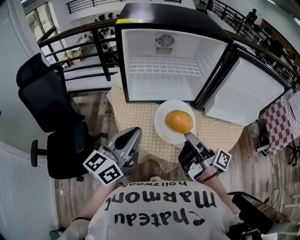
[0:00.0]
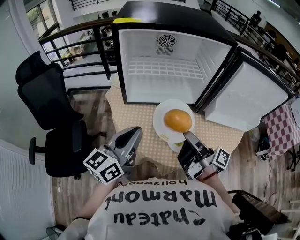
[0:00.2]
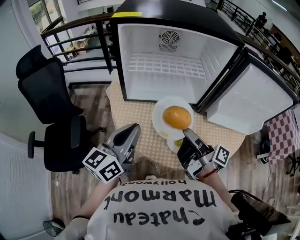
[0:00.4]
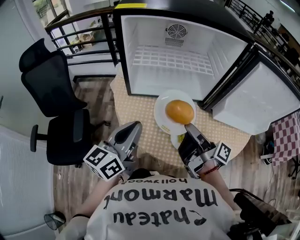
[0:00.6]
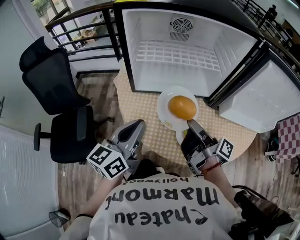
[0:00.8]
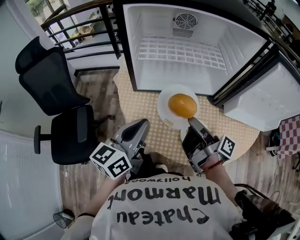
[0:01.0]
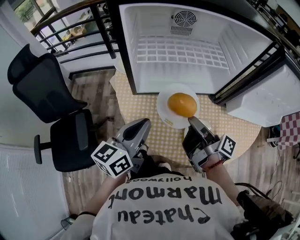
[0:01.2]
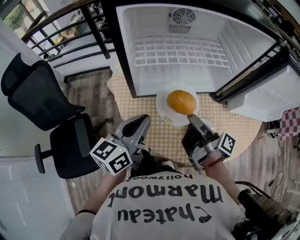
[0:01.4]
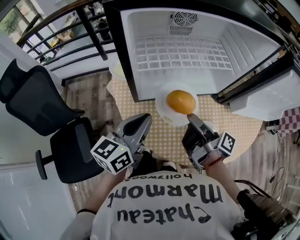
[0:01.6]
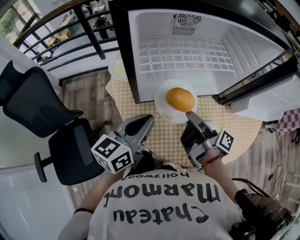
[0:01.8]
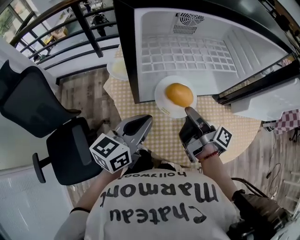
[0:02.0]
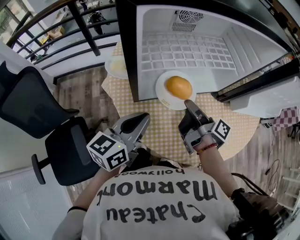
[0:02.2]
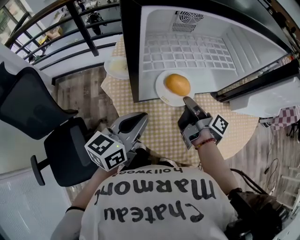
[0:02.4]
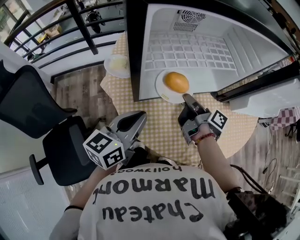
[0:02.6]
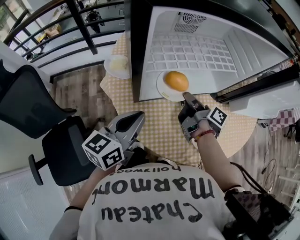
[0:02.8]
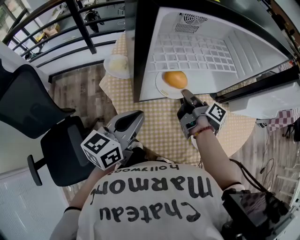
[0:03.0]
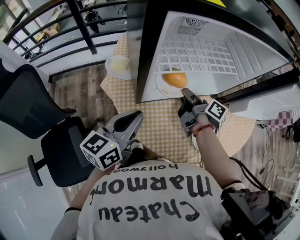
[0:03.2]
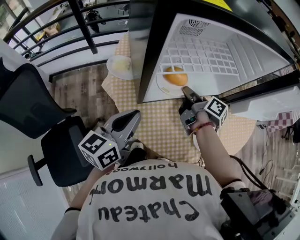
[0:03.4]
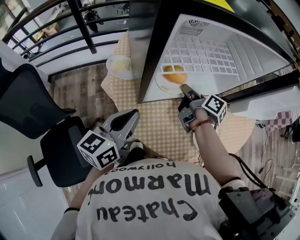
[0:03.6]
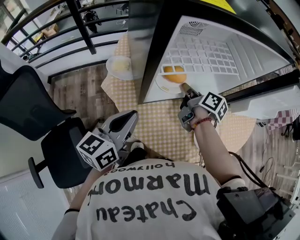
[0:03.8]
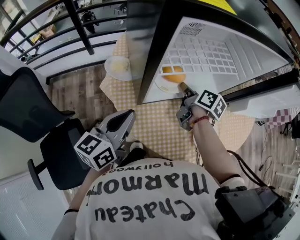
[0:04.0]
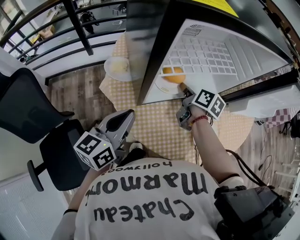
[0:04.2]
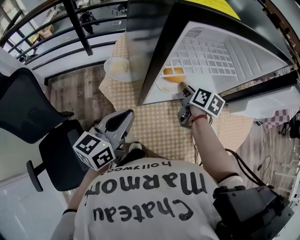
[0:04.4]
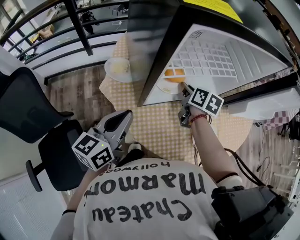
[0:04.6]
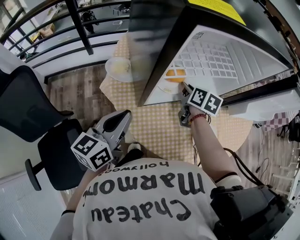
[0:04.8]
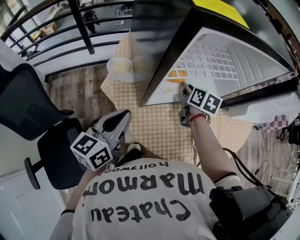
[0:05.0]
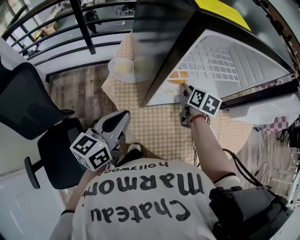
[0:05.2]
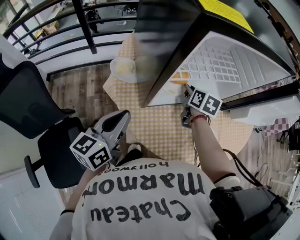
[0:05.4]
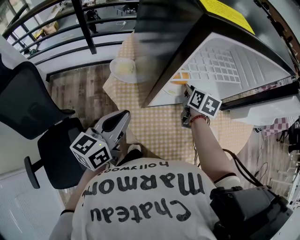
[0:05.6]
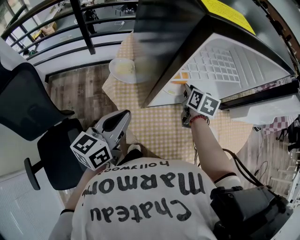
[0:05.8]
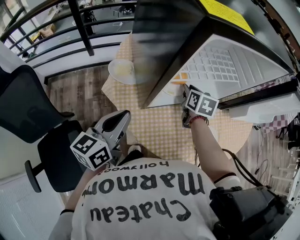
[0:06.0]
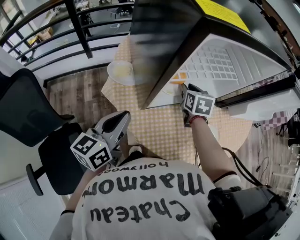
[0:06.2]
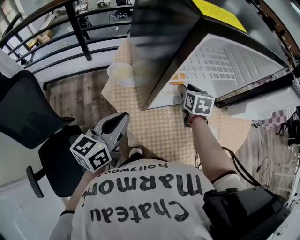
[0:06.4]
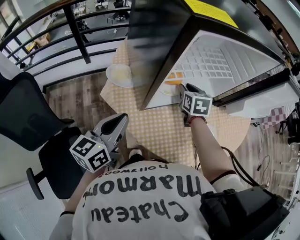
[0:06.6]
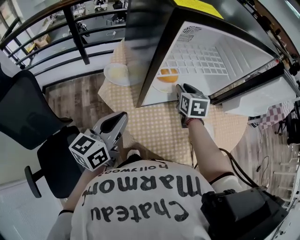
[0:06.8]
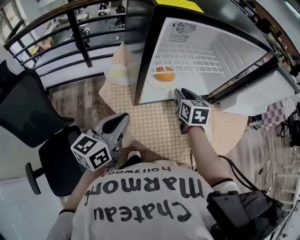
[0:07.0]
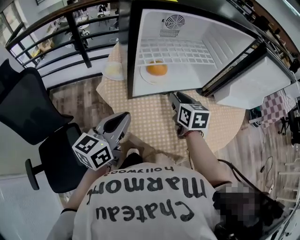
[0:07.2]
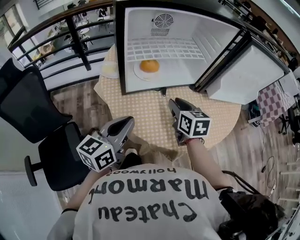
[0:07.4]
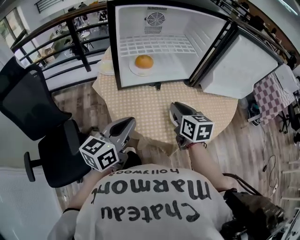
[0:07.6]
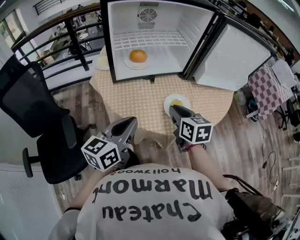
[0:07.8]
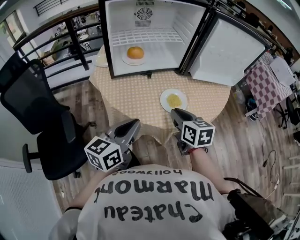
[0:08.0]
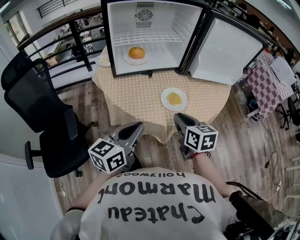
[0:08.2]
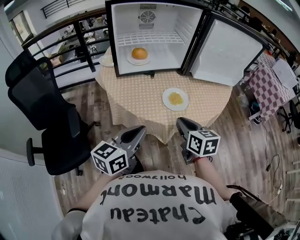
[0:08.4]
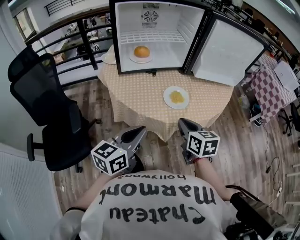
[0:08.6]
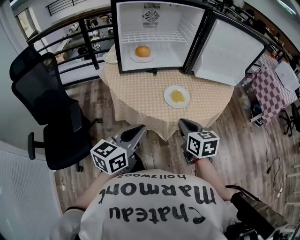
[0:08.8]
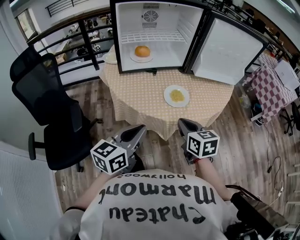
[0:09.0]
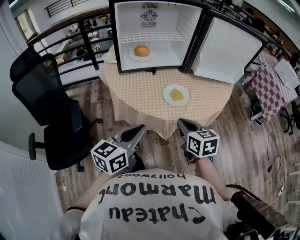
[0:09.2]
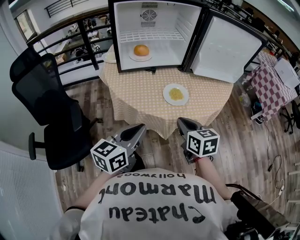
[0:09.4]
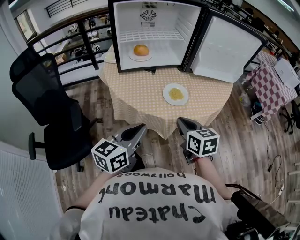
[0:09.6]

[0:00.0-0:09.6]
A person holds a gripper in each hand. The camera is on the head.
0:00.0 to 0:01.6: The right gripper goes approximately 15 cm forward, downward and to the left, while the left gripper travels forward and downward by approximately 15 cm.
0:01.6 to 0:03.2: The left gripper travels to the left by roughly 5 cm, while the right gripper moves forward and downward, approximately 15 cm, and turns by some 20 degrees.
0:03.2 to 0:04.8: The right gripper twists some 40 degrees counterclockwise, seen from behind. The left gripper shifts roughly 5 cm to the left.
0:04.8 to 0:06.4: The right gripper turns by some 20 degrees.
0:06.4 to 0:08.0: The right gripper moves backward and to the right, approximately 35 cm, and changes its angle by roughly 20 degrees; the left gripper shifts about 30 cm to the right and backward.
0:08.0 to 0:09.6: The grippers both shift backward by about 10 cm.

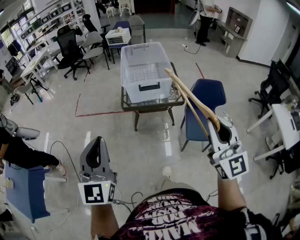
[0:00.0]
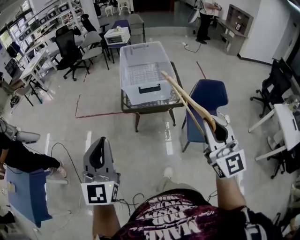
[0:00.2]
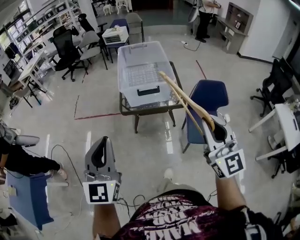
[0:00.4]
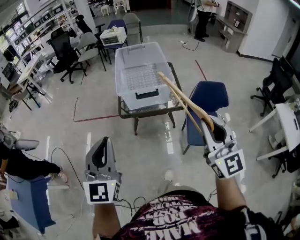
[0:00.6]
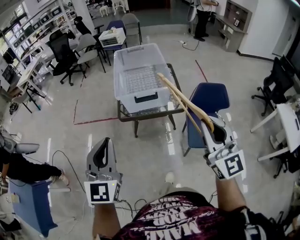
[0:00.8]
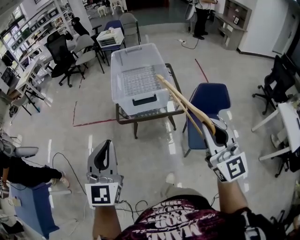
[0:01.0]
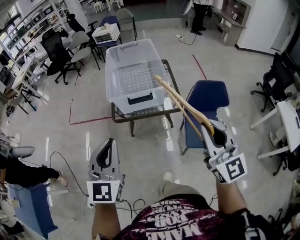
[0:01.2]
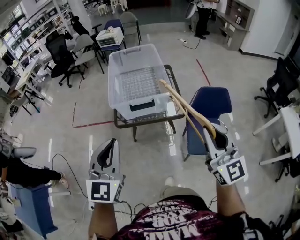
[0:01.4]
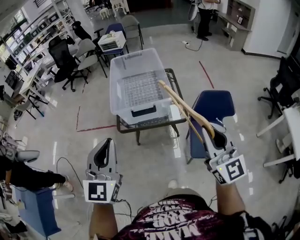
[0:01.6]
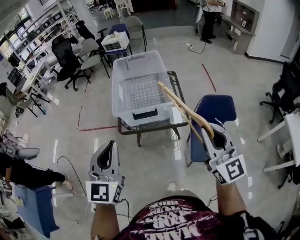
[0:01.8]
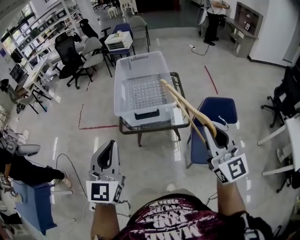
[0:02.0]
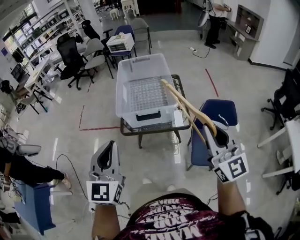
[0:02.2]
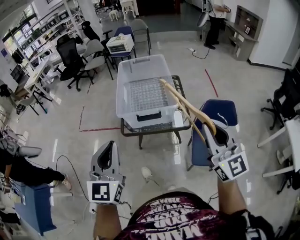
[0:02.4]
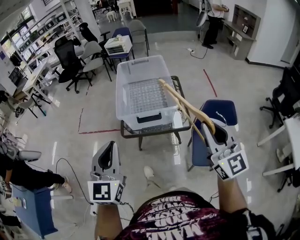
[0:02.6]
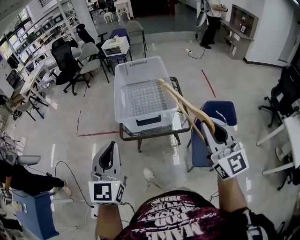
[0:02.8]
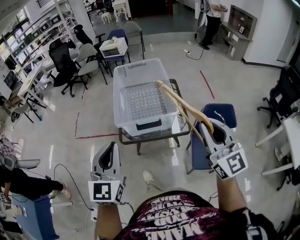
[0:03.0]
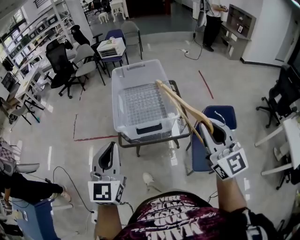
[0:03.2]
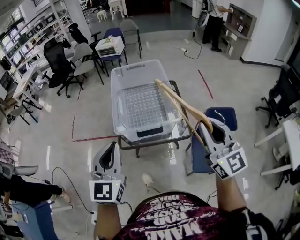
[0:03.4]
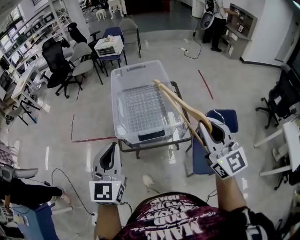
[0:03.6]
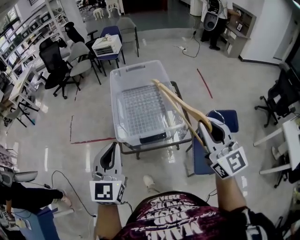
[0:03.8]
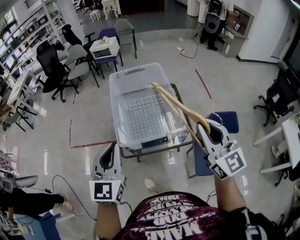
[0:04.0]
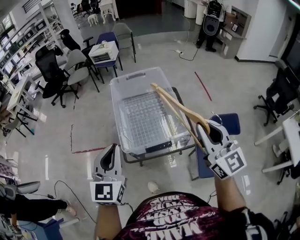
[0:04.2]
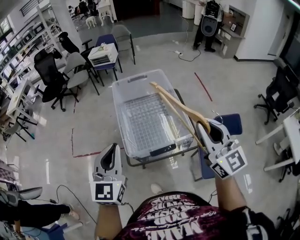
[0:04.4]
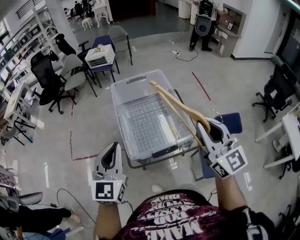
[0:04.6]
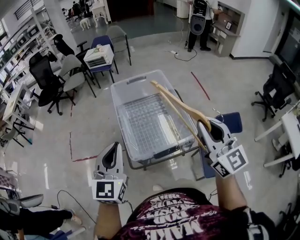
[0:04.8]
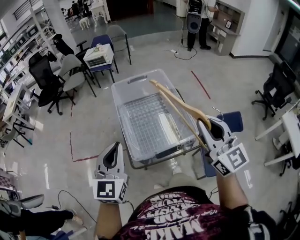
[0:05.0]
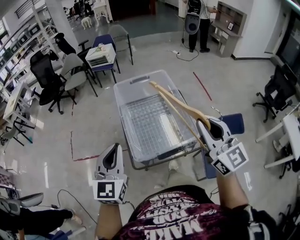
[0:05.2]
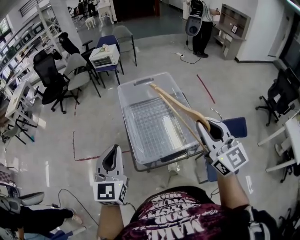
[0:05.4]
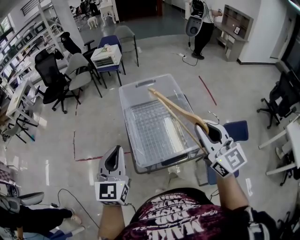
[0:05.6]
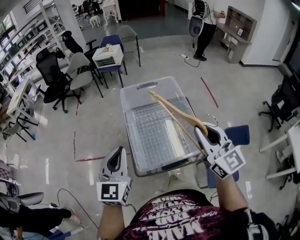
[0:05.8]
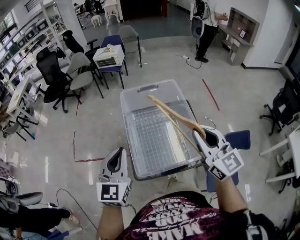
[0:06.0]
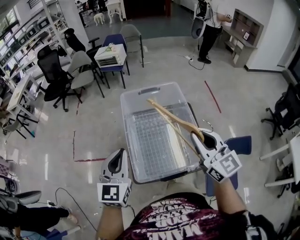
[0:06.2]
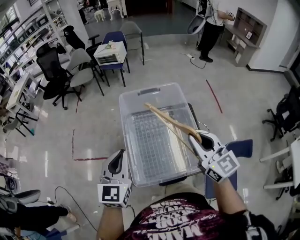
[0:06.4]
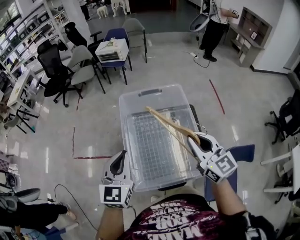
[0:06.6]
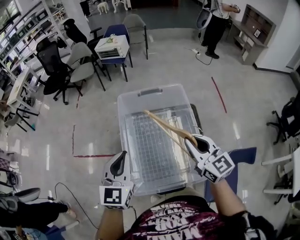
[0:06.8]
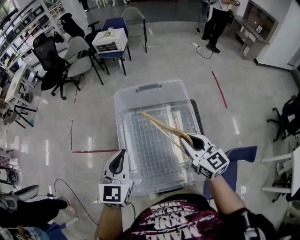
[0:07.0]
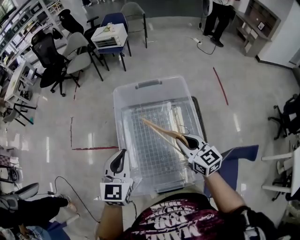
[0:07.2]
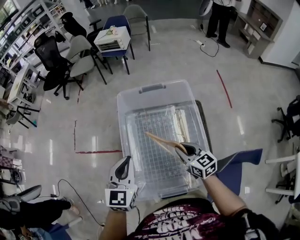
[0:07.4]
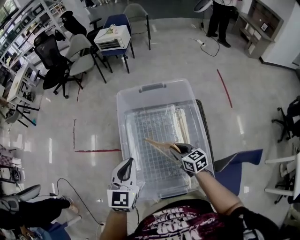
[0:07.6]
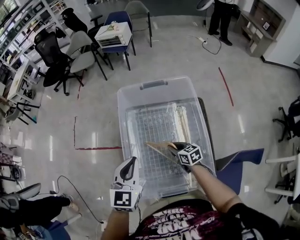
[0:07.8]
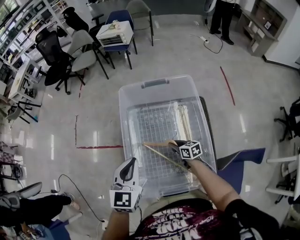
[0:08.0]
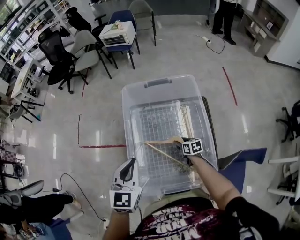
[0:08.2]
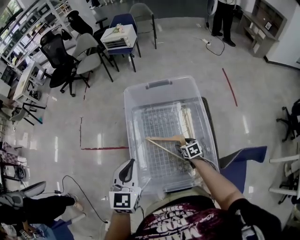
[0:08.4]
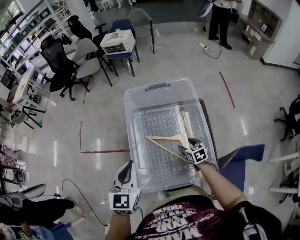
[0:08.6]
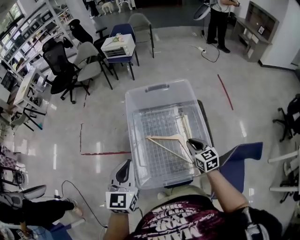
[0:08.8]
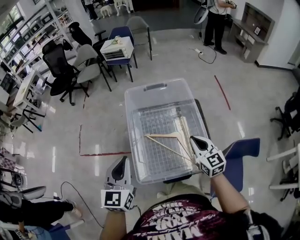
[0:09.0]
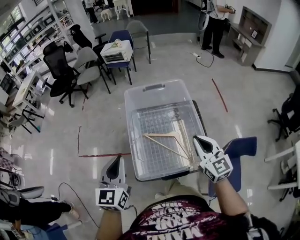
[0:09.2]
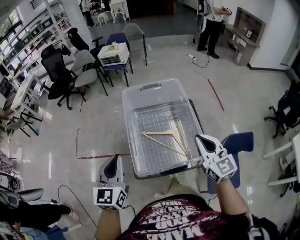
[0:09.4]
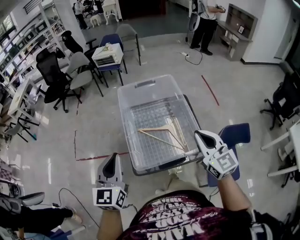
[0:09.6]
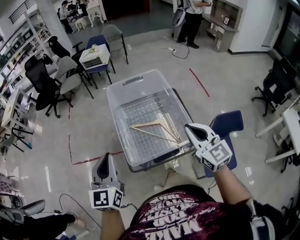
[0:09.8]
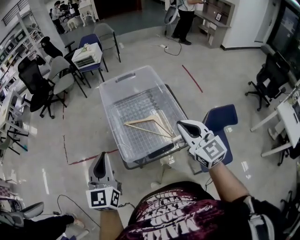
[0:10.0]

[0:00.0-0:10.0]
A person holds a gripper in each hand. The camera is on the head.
0:00.0 to 0:01.4: The two grippers go roughly 20 cm forward and to the right.
0:01.4 to 0:02.8: The two grippers go approximately 5 cm forward.
0:02.8 to 0:04.2: Both grippers move forward, about 20 cm.
0:04.2 to 0:05.8: The grippers both shift forward and to the left by roughly 10 cm.
0:05.8 to 0:07.2: The right gripper moves downward and forward, about 30 cm, and turns by about 30 degrees; the left gripper is displaced forward, downward and to the right by roughly 20 cm.
0:07.2 to 0:08.6: The left gripper shifts approximately 5 cm backward; the right gripper shifts about 20 cm downward, turns by about 30 degrees, and opens.
0:08.6 to 0:10.0: The left gripper shifts roughly 15 cm backward, upward and to the left; the right gripper shifts roughly 40 cm upward and backward, tilts its fingers approximately 40 degrees upward, and closes.

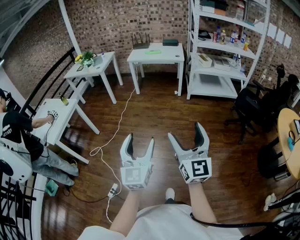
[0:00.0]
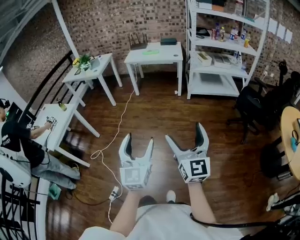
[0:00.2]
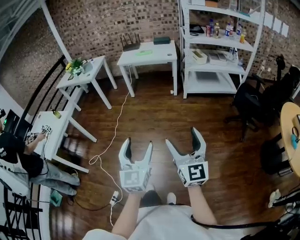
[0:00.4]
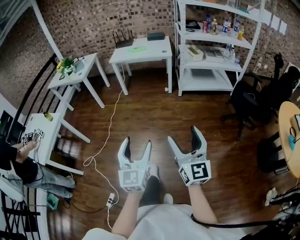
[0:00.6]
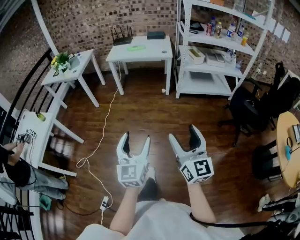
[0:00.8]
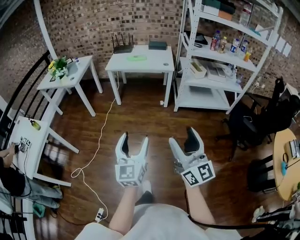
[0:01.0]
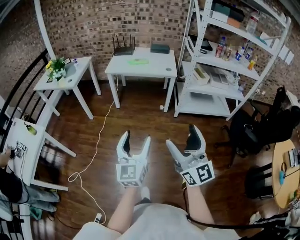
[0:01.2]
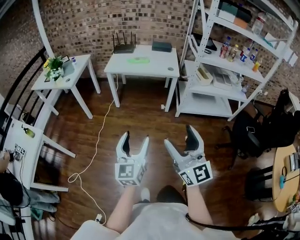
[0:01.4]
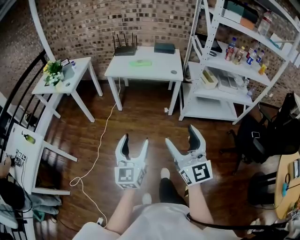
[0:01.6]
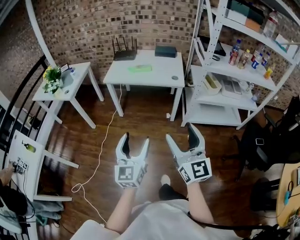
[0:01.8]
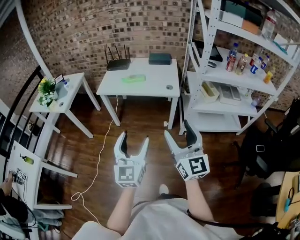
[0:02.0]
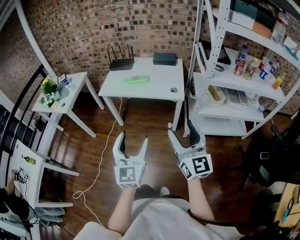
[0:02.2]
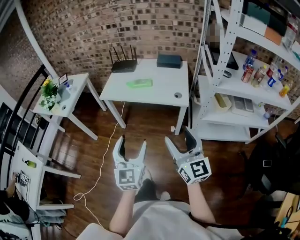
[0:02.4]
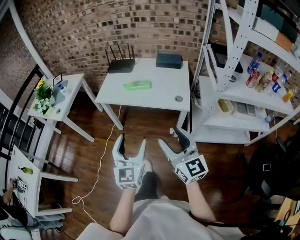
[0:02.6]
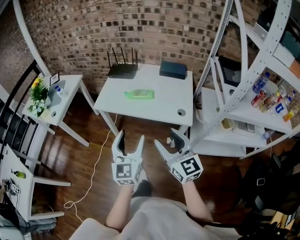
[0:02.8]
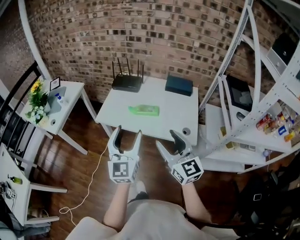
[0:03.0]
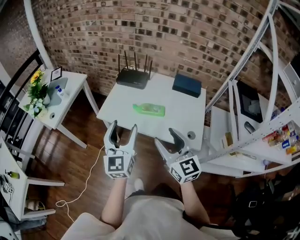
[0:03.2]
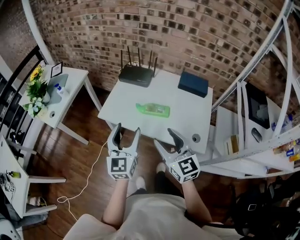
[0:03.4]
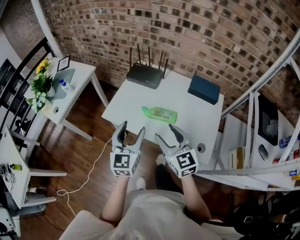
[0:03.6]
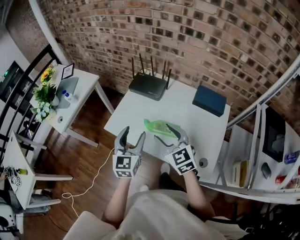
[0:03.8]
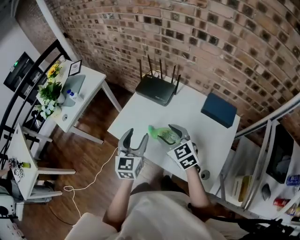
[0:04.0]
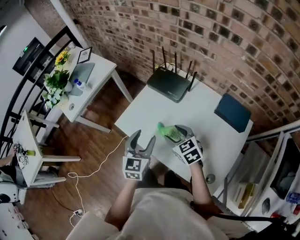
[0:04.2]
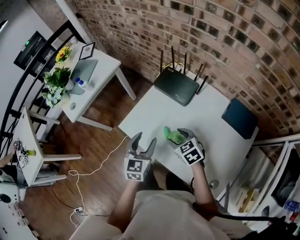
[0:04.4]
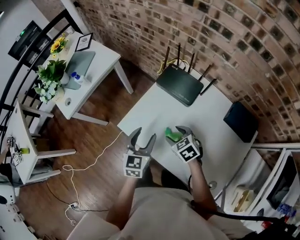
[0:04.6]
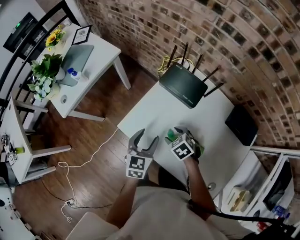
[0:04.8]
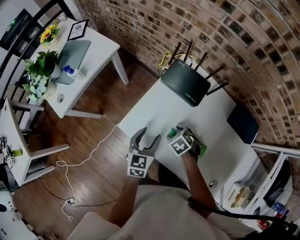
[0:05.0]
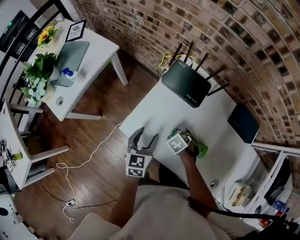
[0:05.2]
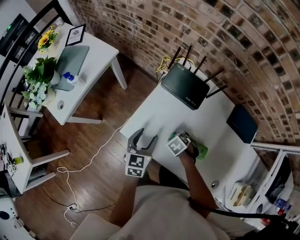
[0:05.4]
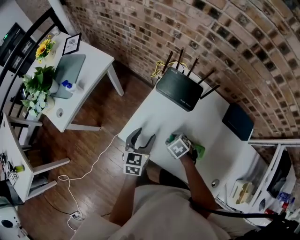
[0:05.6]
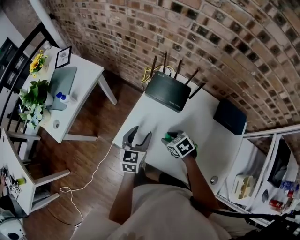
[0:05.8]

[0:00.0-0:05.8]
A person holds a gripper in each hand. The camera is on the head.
0:00.0 to 0:01.4: Both grippers are carried forward, about 50 cm.
0:01.4 to 0:02.8: Both grippers are carried forward, approximately 60 cm. The right gripper swivels roughly 20 degrees.
0:02.8 to 0:04.4: The two grippers travel together, some 50 cm. The right gripper angles its fingers downward, by approximately 50 degrees, while the left gripper changes its angle by some 30 degrees.
0:04.4 to 0:05.8: The left gripper ends up about 10 cm from where it was.
